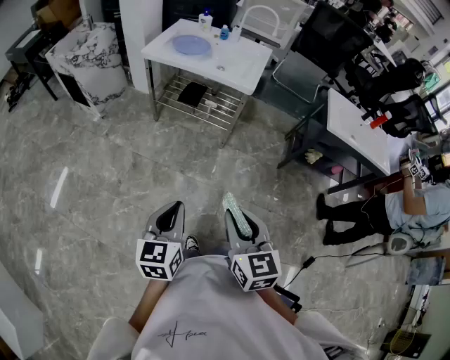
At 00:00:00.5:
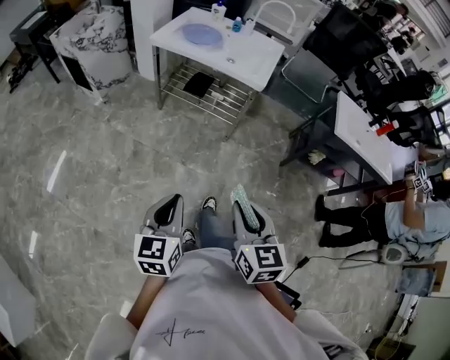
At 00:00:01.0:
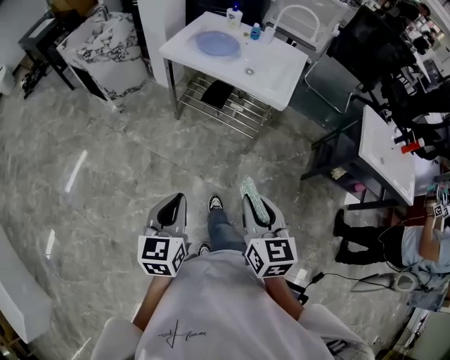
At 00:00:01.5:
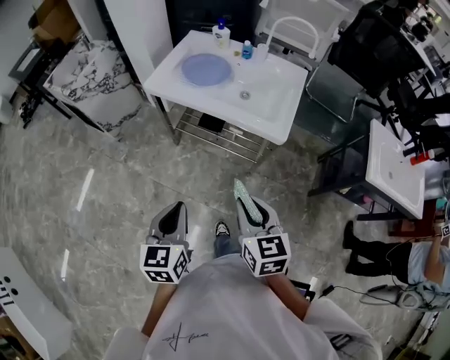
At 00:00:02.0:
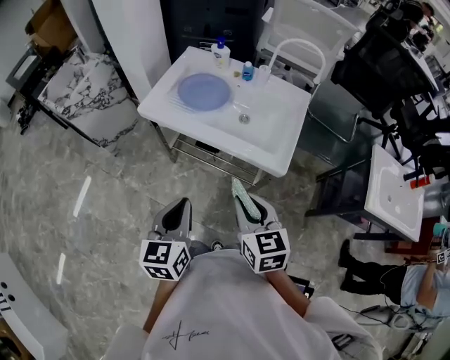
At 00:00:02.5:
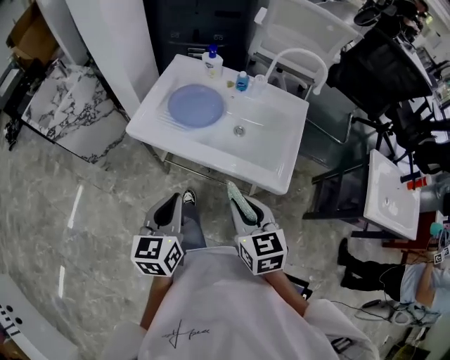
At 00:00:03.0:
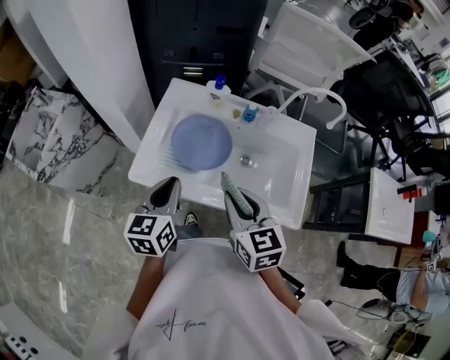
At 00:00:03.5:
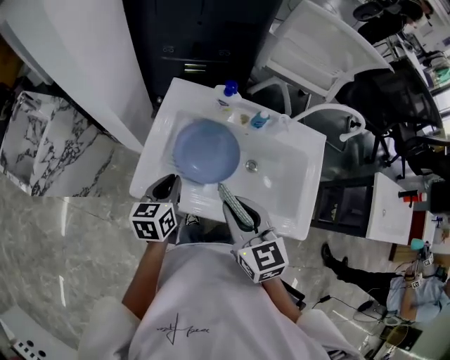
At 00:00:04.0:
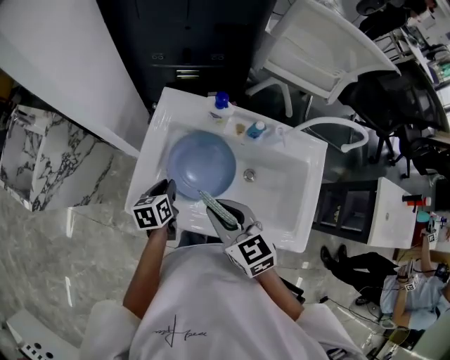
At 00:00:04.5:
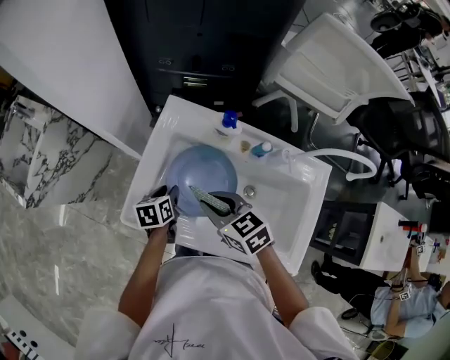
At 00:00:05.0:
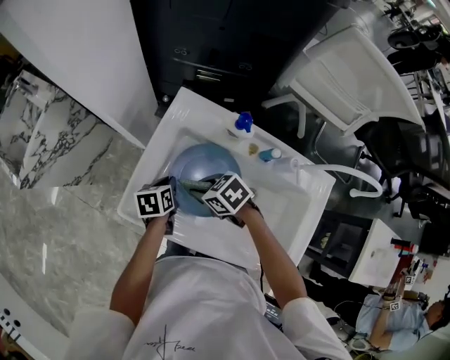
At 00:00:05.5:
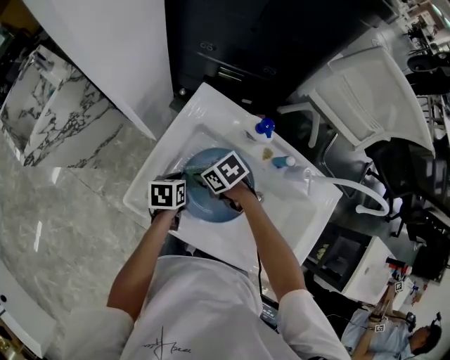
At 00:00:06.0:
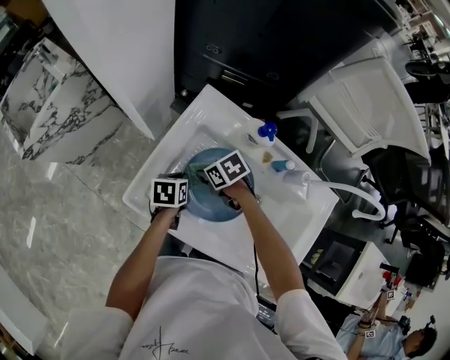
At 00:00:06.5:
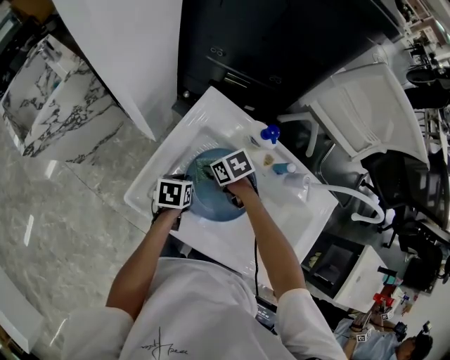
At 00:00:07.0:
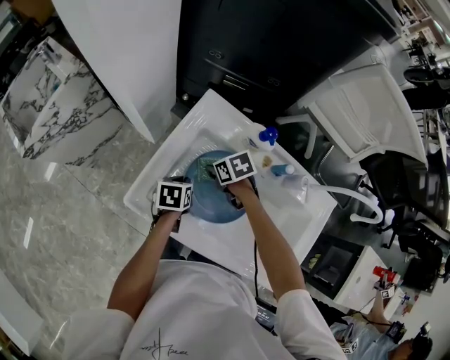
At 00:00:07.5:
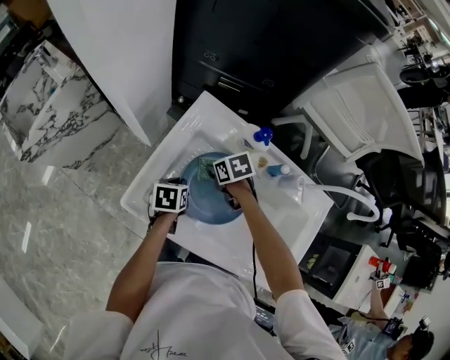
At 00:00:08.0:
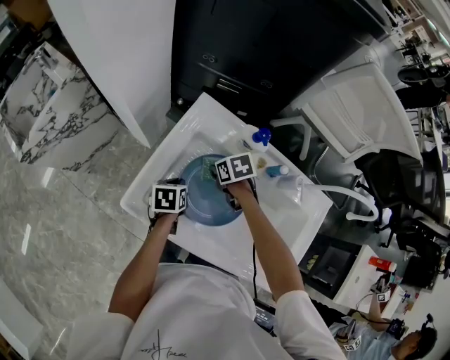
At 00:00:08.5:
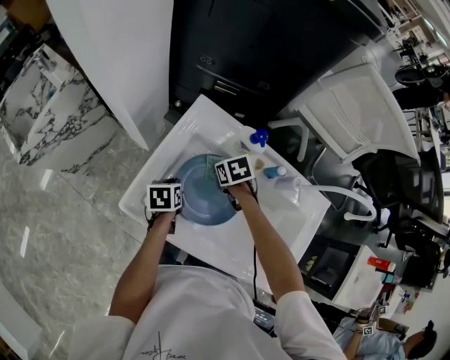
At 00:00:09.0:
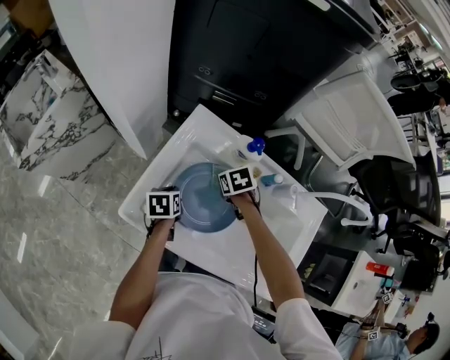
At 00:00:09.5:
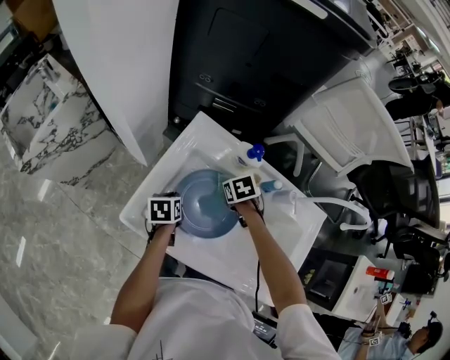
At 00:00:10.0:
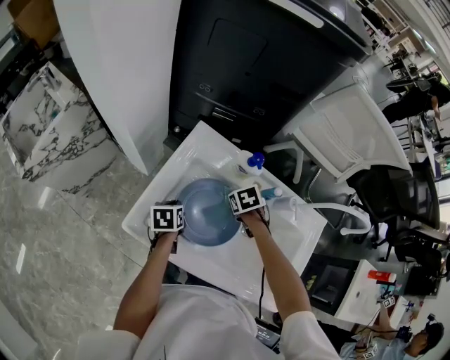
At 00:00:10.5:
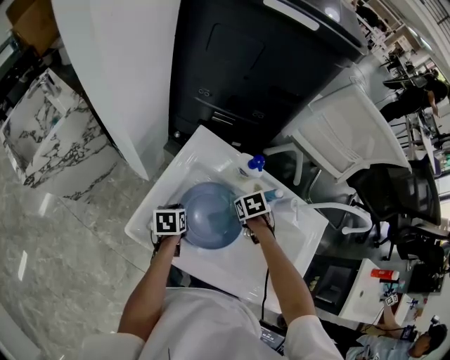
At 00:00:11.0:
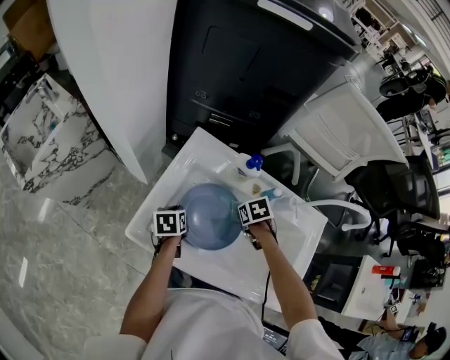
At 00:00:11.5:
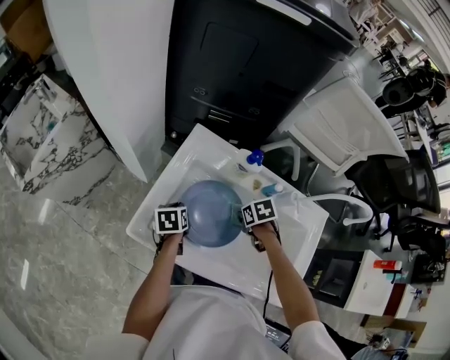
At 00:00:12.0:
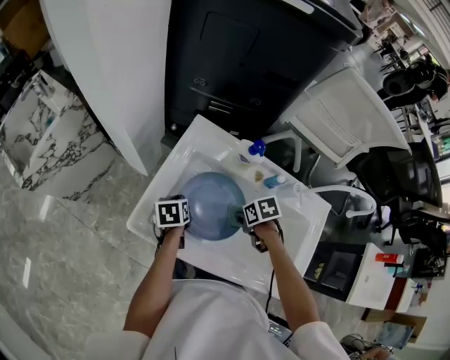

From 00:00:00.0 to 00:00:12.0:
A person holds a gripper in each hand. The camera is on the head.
From 00:00:00.0 to 00:00:02.0: Both grippers are carried forward, about 50 cm.
From 00:00:02.0 to 00:00:04.0: Both grippers are carried forward, roughly 40 cm. The left gripper moves downward, approximately 20 cm, and rotates roughly 30 degrees.
From 00:00:04.0 to 00:00:06.0: The left gripper travels downward by about 5 cm. Meanwhile the right gripper shifts roughly 20 cm downward, and changes its angle by about 50 degrees.
From 00:00:06.0 to 00:00:08.0: The right gripper travels to the right by about 5 cm.
From 00:00:08.0 to 00:00:10.0: The right gripper moves roughly 10 cm.
From 00:00:10.0 to 00:00:12.0: The right gripper ends up roughly 10 cm from where it was, and changes its angle by approximately 20 degrees.

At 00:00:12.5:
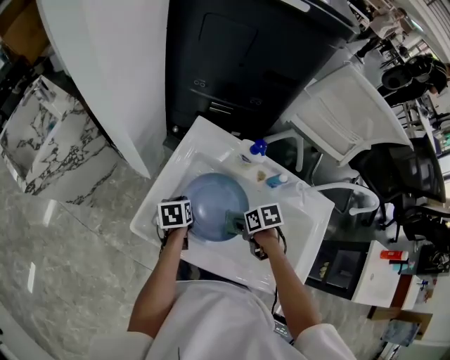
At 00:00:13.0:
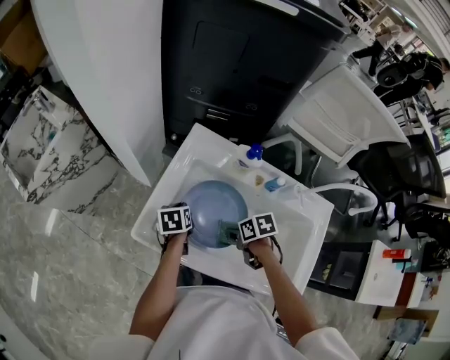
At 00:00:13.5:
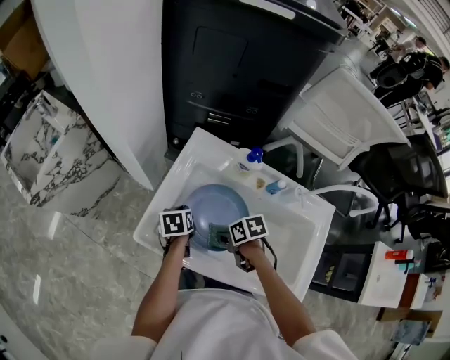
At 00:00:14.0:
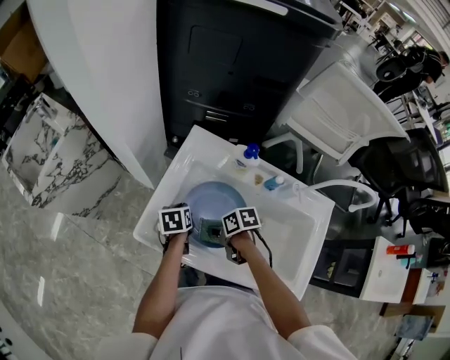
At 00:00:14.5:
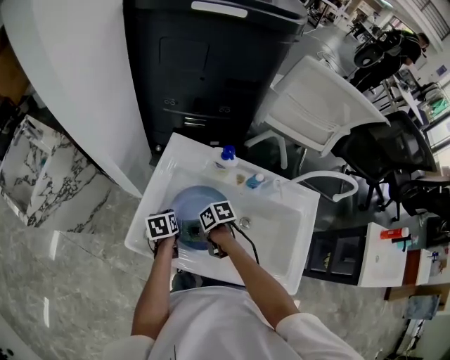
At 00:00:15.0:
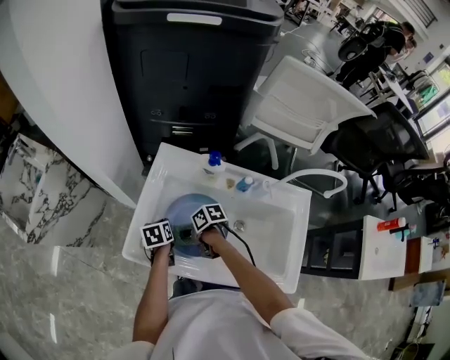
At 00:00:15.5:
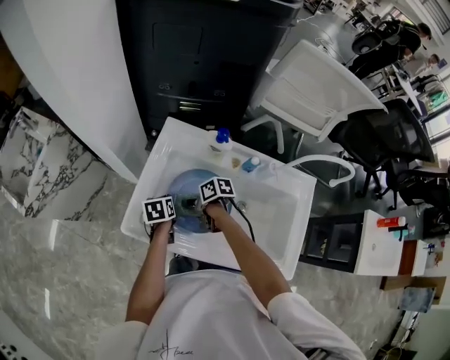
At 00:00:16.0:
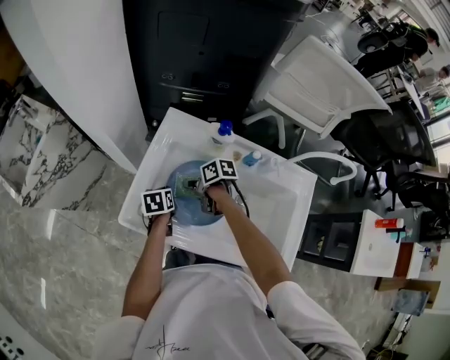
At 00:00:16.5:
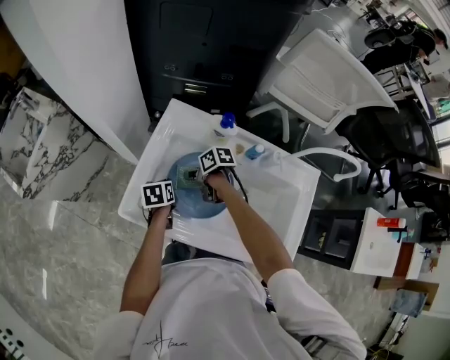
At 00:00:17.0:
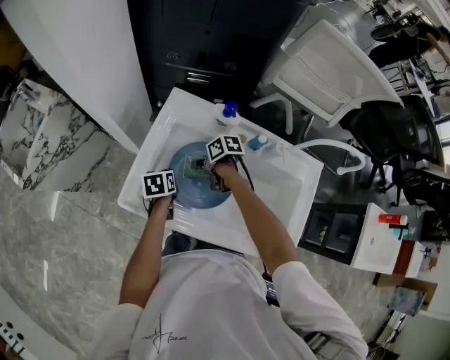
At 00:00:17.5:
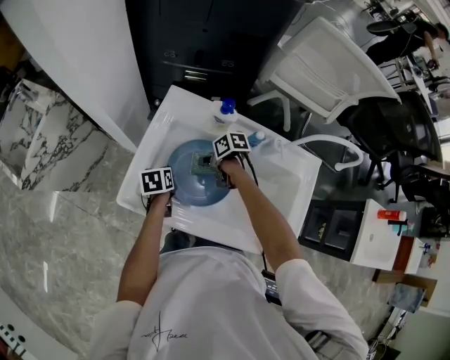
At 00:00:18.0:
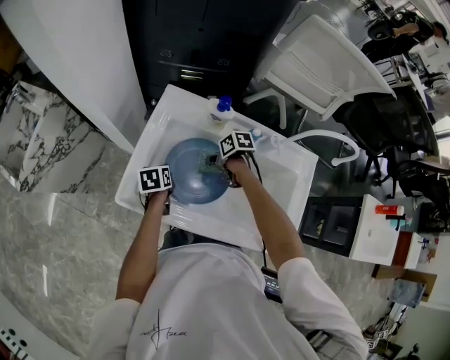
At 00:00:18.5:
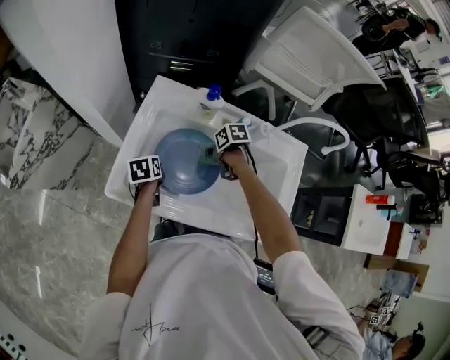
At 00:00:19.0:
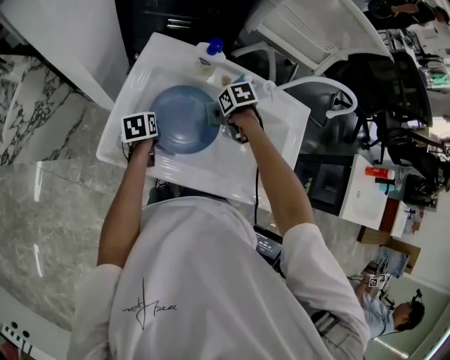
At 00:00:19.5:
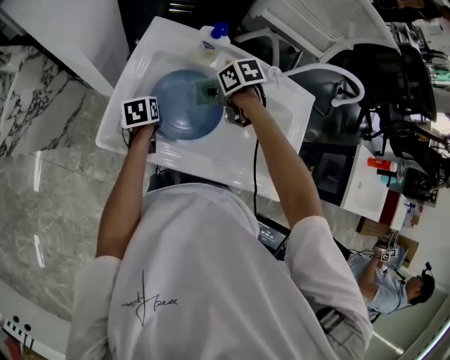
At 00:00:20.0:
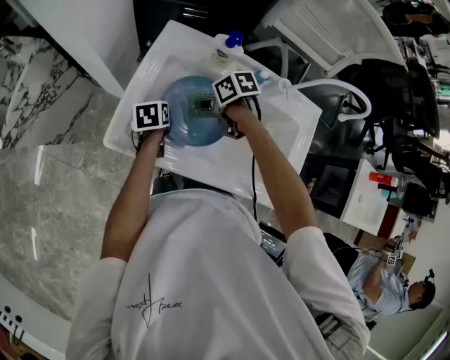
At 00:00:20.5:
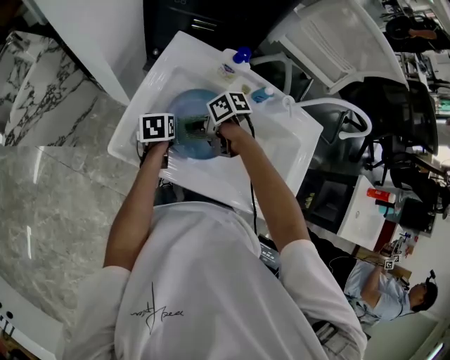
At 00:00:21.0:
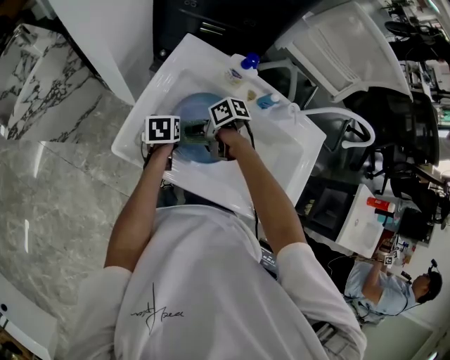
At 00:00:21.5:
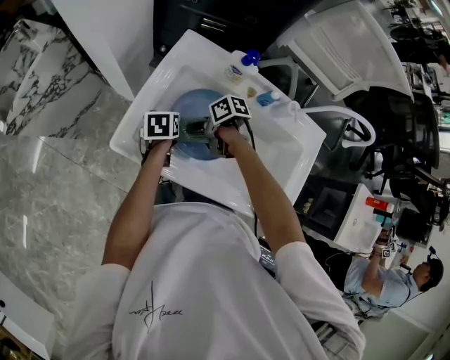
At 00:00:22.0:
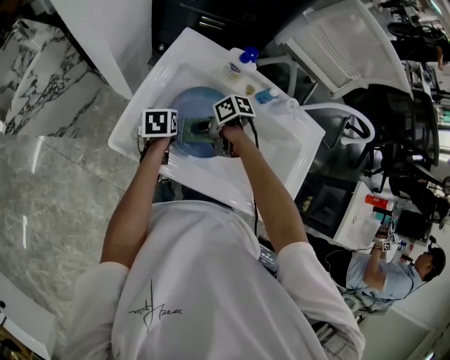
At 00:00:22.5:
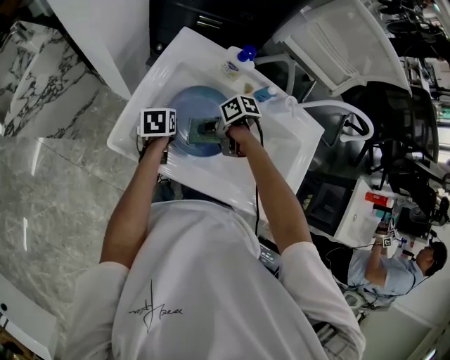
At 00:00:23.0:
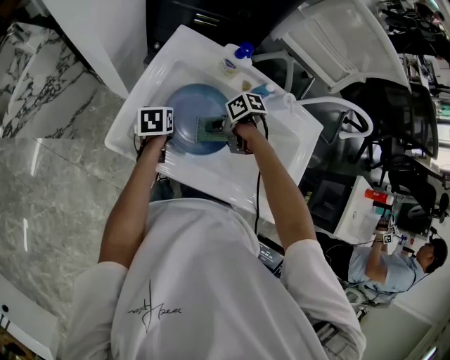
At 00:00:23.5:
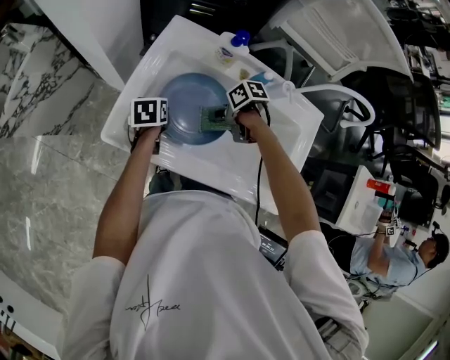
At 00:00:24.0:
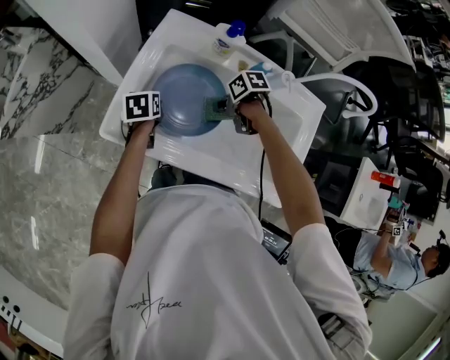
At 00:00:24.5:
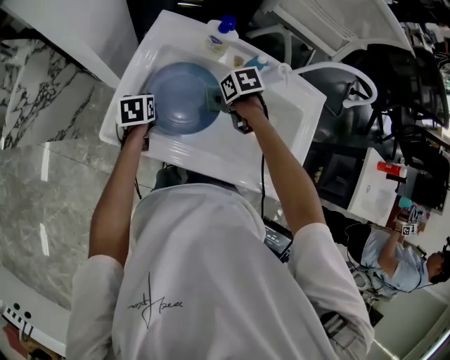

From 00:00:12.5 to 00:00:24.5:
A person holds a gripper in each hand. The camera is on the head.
From 00:00:12.5 to 00:00:14.5: The right gripper is displaced to the left by approximately 10 cm.
From 00:00:14.5 to 00:00:16.5: The right gripper travels forward by some 5 cm.
From 00:00:16.5 to 00:00:18.5: The right gripper goes about 15 cm to the right and backward.
From 00:00:18.5 to 00:00:20.5: The right gripper moves to the left, roughly 15 cm, and turns by roughly 20 degrees.
From 00:00:20.5 to 00:00:22.5: The right gripper ends up about 5 cm from where it was.
From 00:00:22.5 to 00:00:24.5: The right gripper moves to the right, approximately 10 cm, and turns by some 30 degrees.

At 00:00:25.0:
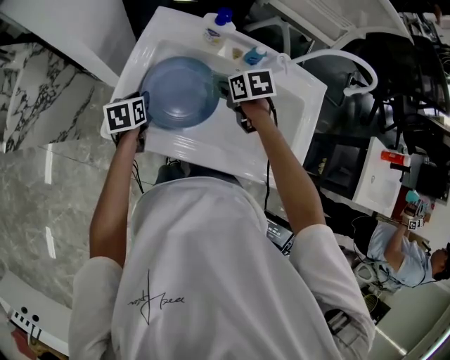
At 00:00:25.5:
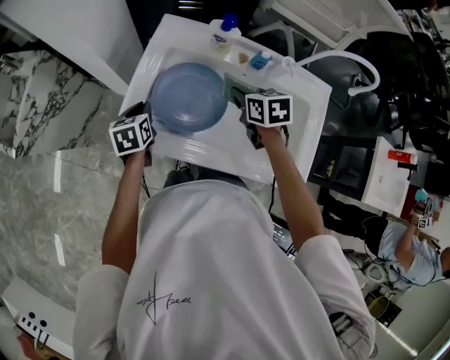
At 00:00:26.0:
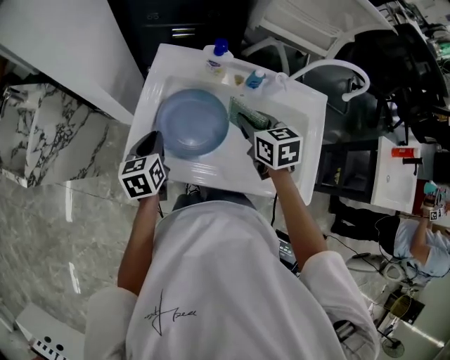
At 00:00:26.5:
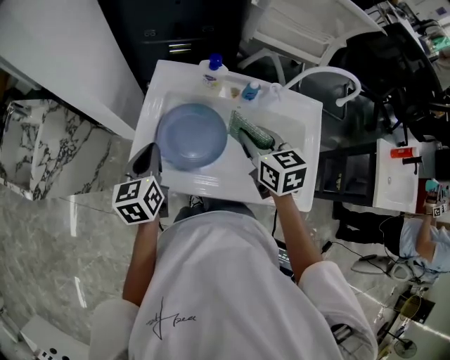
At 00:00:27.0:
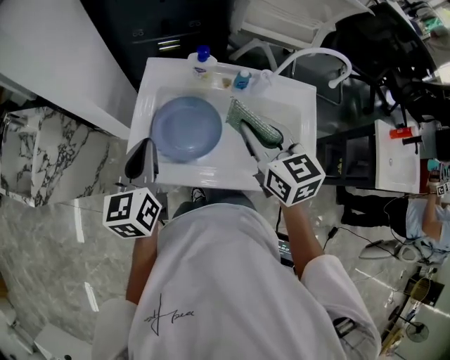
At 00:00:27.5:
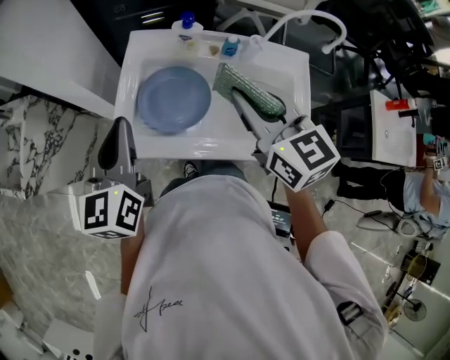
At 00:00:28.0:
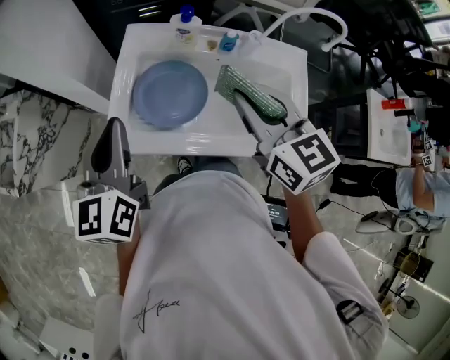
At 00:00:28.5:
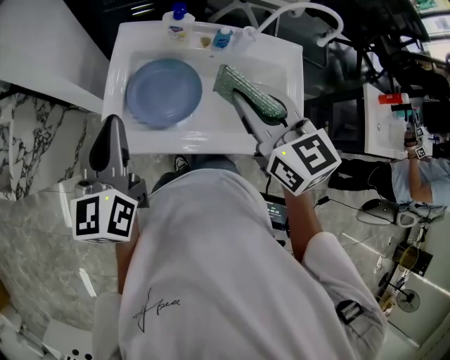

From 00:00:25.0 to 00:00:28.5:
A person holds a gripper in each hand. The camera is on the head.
From 00:00:25.0 to 00:00:27.0: The right gripper moves upward and backward, some 25 cm, and angles its fingers upward, by roughly 40 degrees. Meanwhile the left gripper goes approximately 25 cm upward, and angles its fingers upward, by some 40 degrees.
From 00:00:27.0 to 00:00:28.5: The right gripper moves some 5 cm, while the left gripper shifts by about 5 cm.
